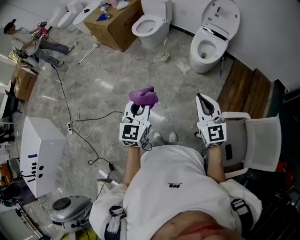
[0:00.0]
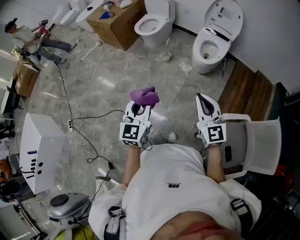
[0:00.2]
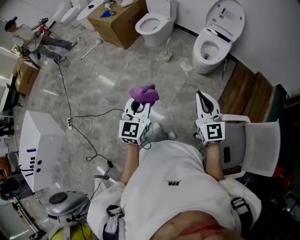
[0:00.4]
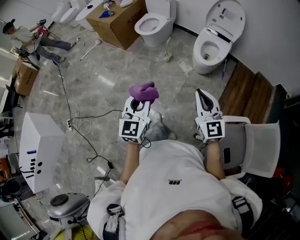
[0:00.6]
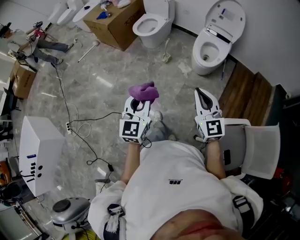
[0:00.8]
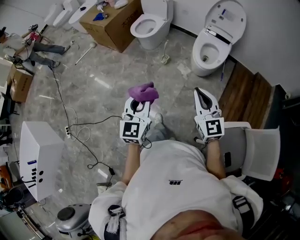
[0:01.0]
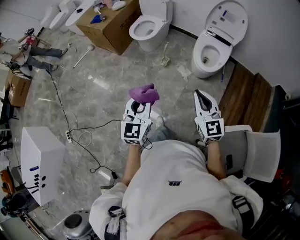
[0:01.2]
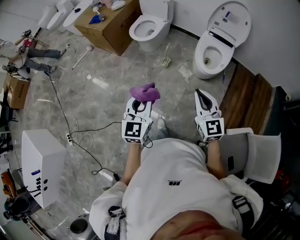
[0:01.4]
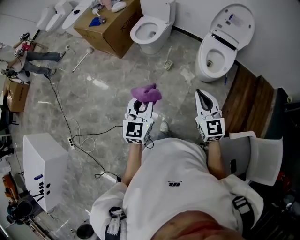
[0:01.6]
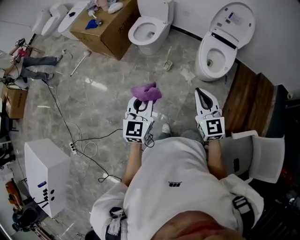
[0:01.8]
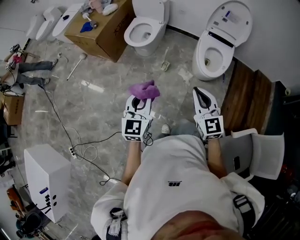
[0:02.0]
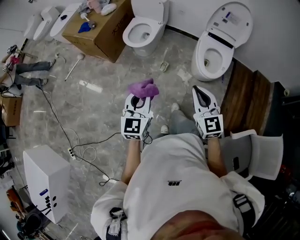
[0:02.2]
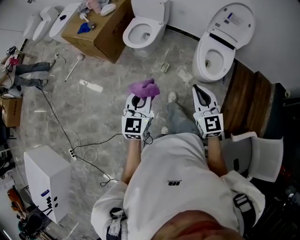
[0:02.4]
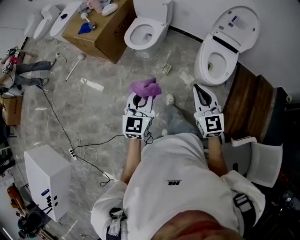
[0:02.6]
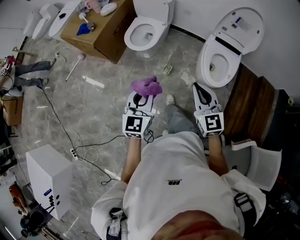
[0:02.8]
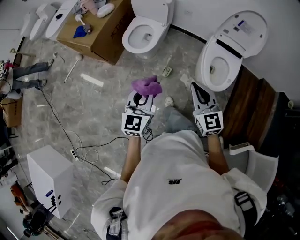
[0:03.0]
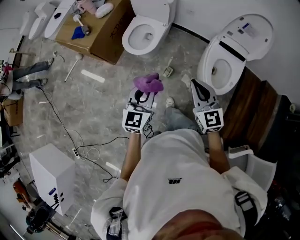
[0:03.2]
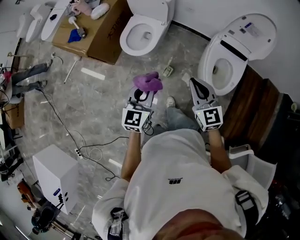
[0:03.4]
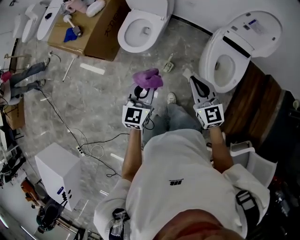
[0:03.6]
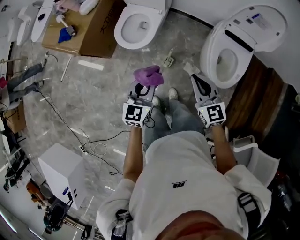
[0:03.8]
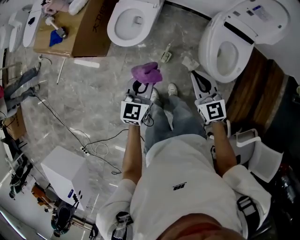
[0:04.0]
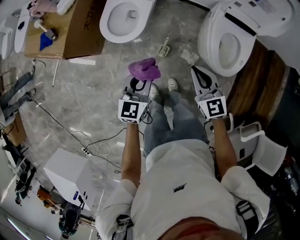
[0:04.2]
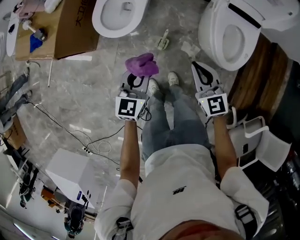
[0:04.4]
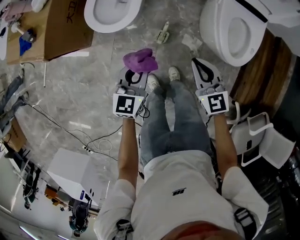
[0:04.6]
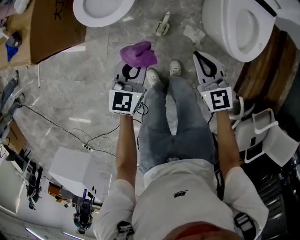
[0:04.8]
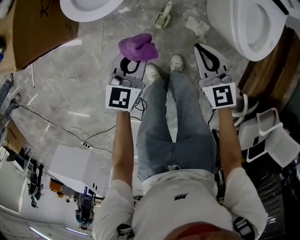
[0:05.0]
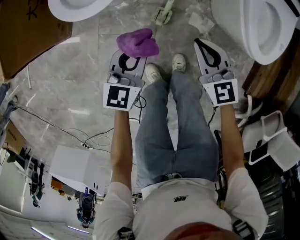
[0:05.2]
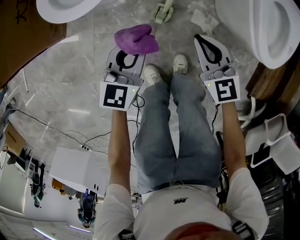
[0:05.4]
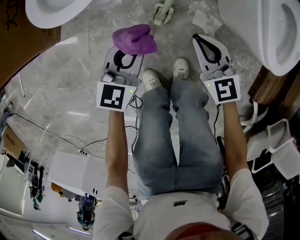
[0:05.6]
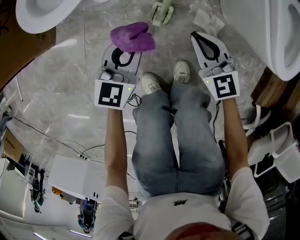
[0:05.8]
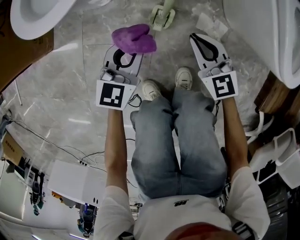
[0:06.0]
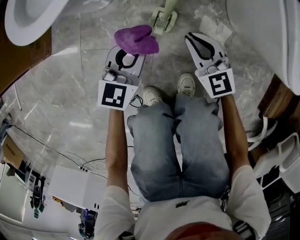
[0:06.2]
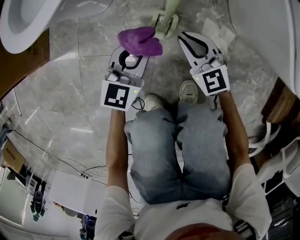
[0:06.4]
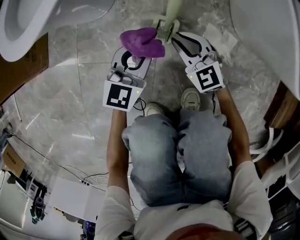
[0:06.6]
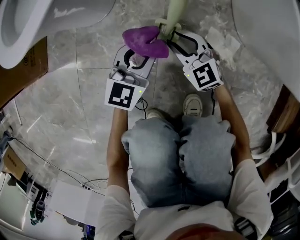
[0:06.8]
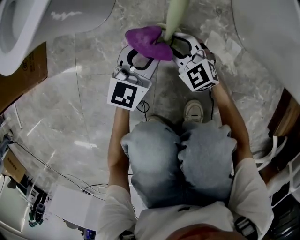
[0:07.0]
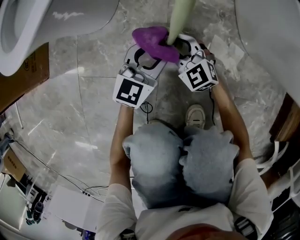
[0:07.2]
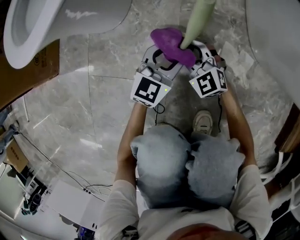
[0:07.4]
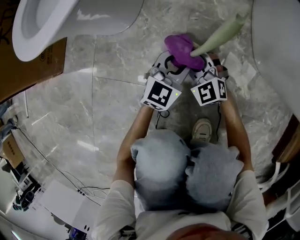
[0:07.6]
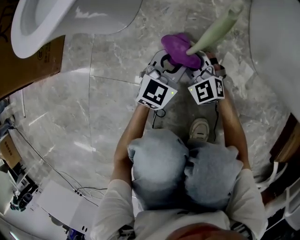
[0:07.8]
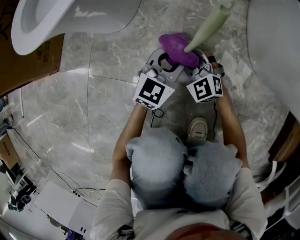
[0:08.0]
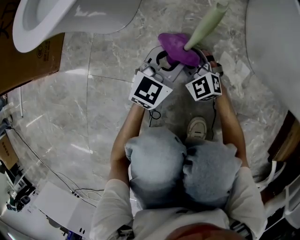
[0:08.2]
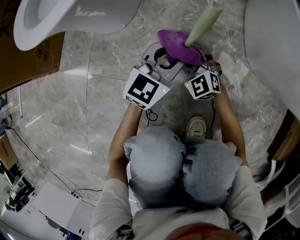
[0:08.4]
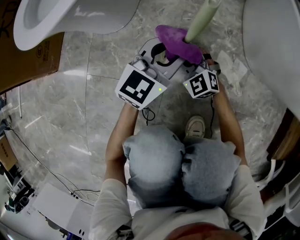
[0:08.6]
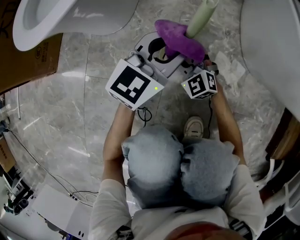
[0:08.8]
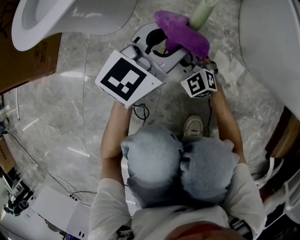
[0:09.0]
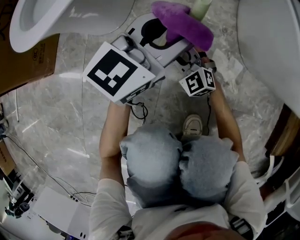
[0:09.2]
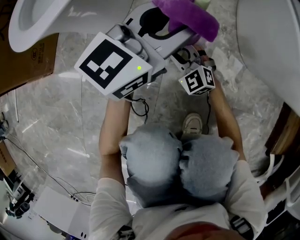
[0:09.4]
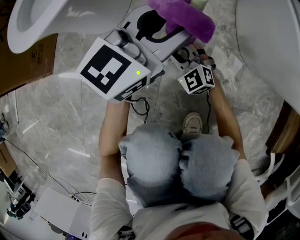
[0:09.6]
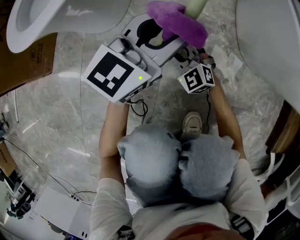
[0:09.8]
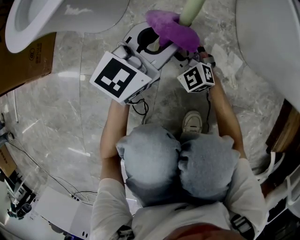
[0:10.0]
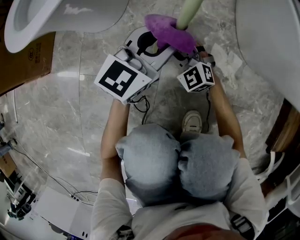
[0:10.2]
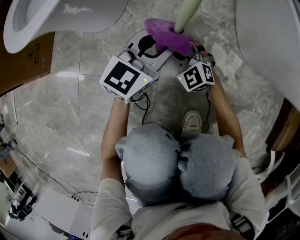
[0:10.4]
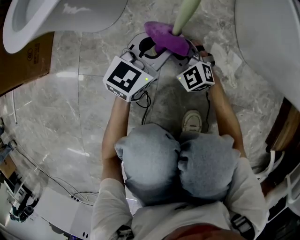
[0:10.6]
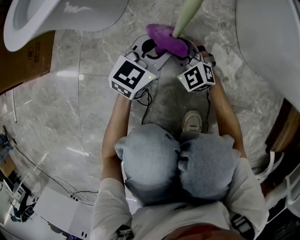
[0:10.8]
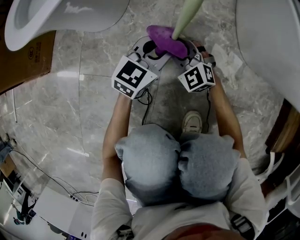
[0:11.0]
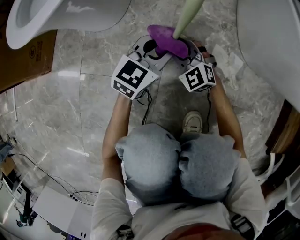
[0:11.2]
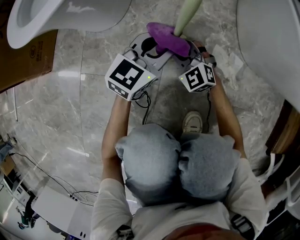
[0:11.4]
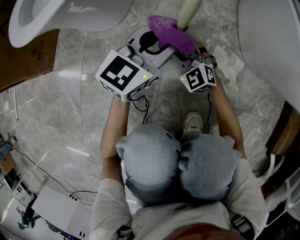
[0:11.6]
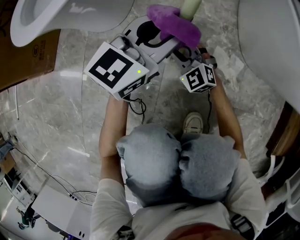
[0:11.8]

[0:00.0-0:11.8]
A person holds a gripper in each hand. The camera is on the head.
0:00.0 to 0:01.4: The grippers both shift forward by roughly 25 cm.
0:01.4 to 0:03.0: The grippers both shift forward by approximately 35 cm.
0:03.0 to 0:04.4: The grippers both shift downward and forward by some 30 cm.
0:04.4 to 0:06.0: The grippers both shift downward by about 50 cm.
0:06.0 to 0:07.4: The right gripper moves downward, roughly 20 cm, turns by some 20 degrees, and opens up, while the left gripper shifts roughly 20 cm downward and to the right, and opens.
0:07.4 to 0:08.8: The left gripper shifts some 15 cm upward.
0:08.8 to 0:10.4: The left gripper moves about 10 cm upward and comes back.
0:10.4 to 0:11.8: The left gripper travels upward by approximately 5 cm.

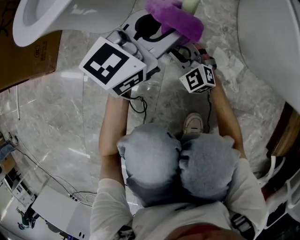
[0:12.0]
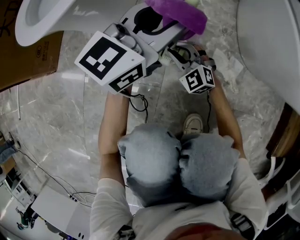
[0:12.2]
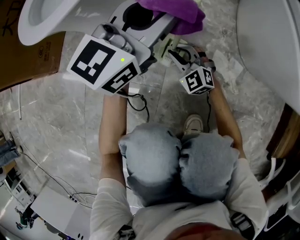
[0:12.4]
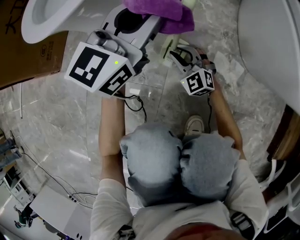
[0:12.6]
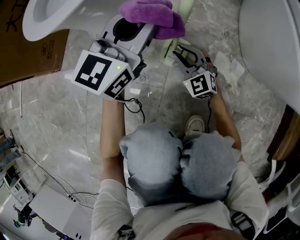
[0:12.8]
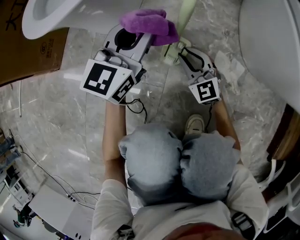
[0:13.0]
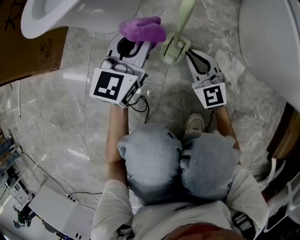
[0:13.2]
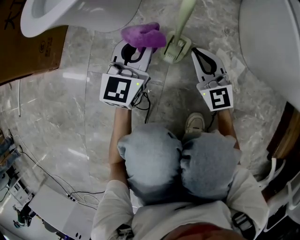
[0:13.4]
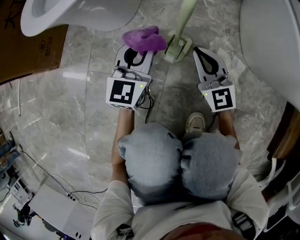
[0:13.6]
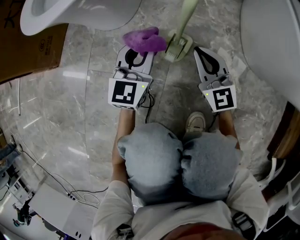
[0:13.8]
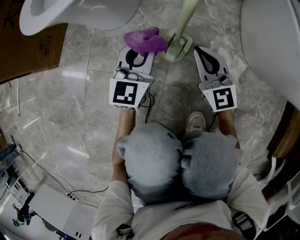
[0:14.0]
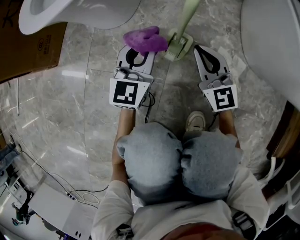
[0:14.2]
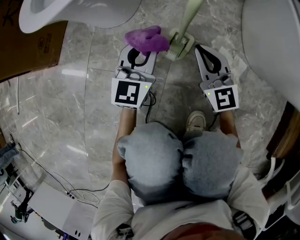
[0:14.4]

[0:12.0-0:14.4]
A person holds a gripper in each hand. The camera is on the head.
0:12.0 to 0:13.2: The right gripper heads upward, covering some 5 cm, and rotates some 30 degrees, while the left gripper shifts roughly 10 cm to the left, and turns by some 20 degrees.
0:13.2 to 0:14.4: The left gripper is displaced downward by approximately 5 cm.

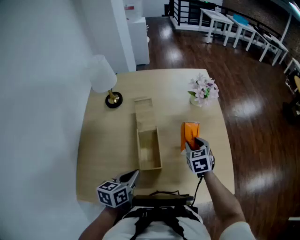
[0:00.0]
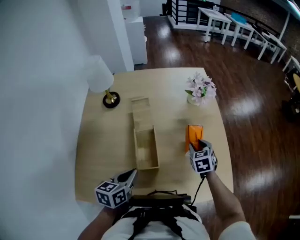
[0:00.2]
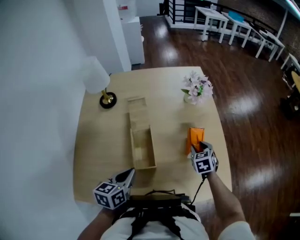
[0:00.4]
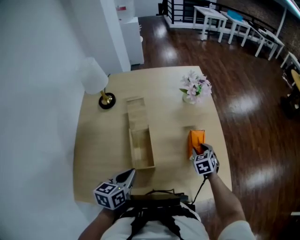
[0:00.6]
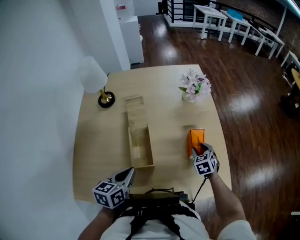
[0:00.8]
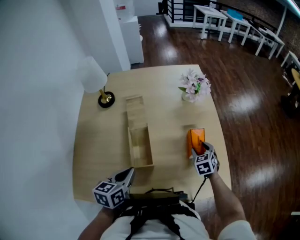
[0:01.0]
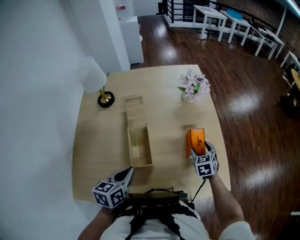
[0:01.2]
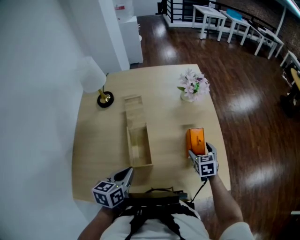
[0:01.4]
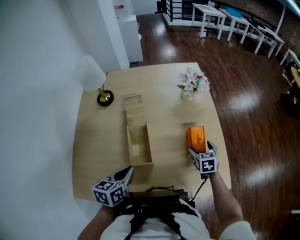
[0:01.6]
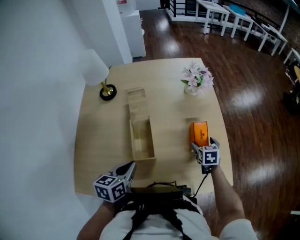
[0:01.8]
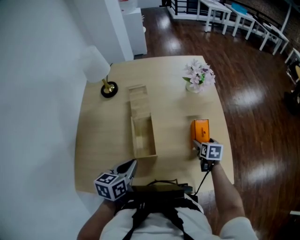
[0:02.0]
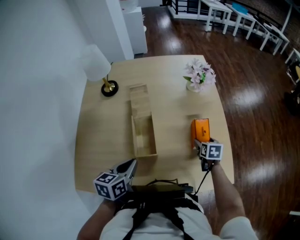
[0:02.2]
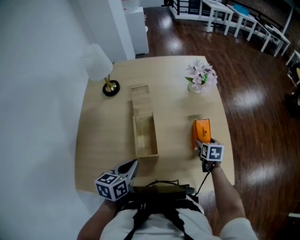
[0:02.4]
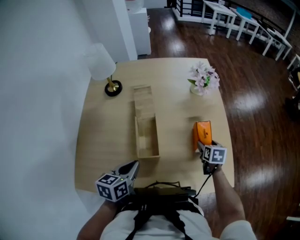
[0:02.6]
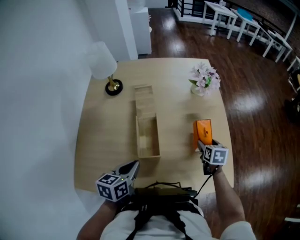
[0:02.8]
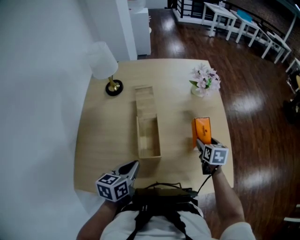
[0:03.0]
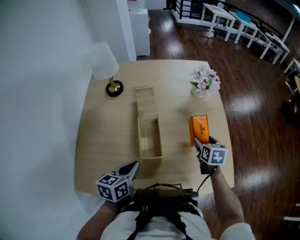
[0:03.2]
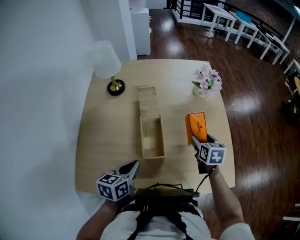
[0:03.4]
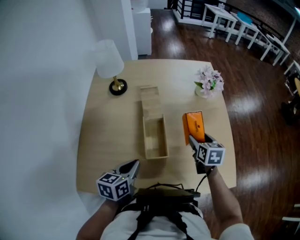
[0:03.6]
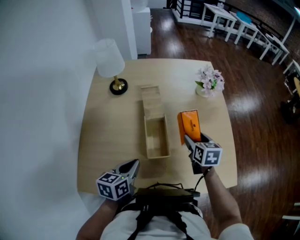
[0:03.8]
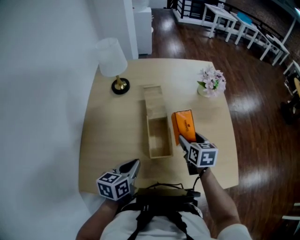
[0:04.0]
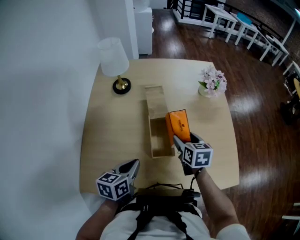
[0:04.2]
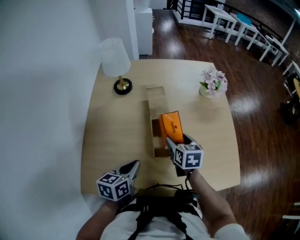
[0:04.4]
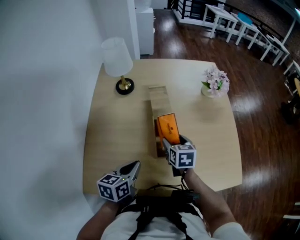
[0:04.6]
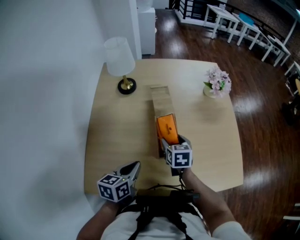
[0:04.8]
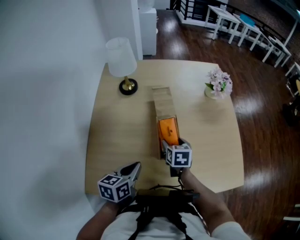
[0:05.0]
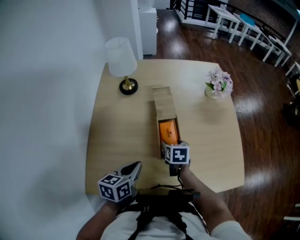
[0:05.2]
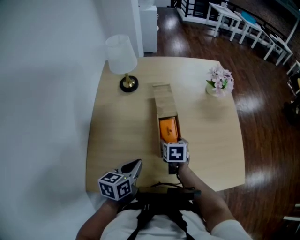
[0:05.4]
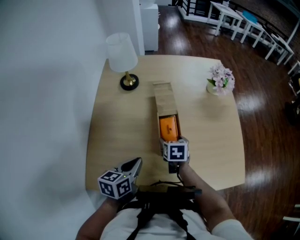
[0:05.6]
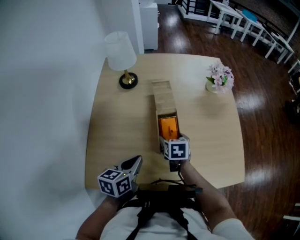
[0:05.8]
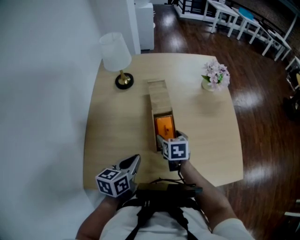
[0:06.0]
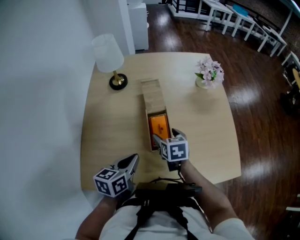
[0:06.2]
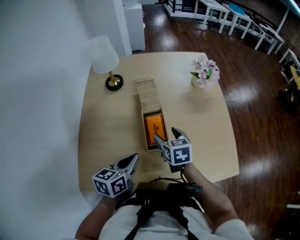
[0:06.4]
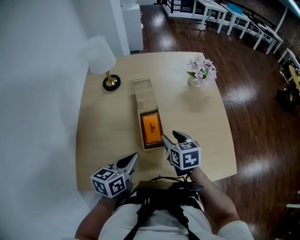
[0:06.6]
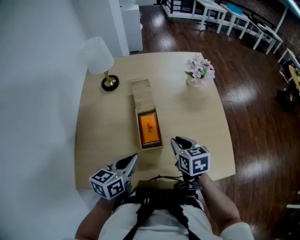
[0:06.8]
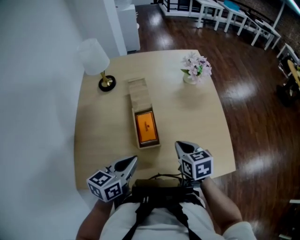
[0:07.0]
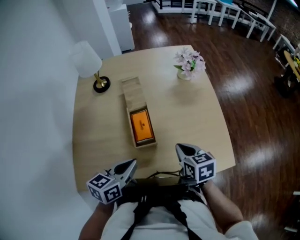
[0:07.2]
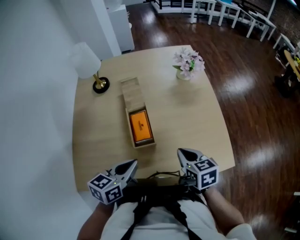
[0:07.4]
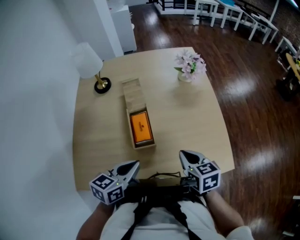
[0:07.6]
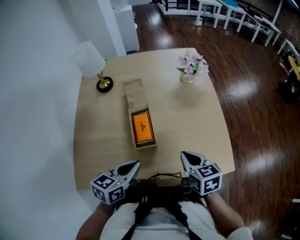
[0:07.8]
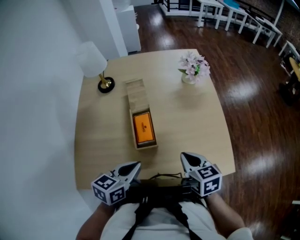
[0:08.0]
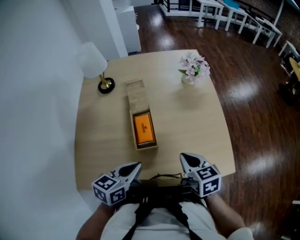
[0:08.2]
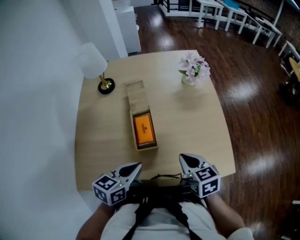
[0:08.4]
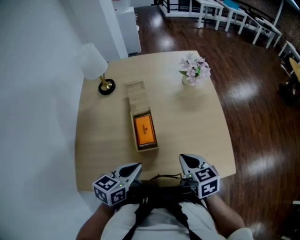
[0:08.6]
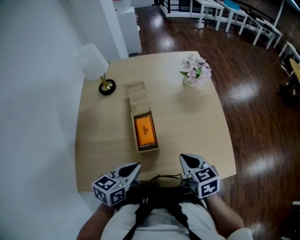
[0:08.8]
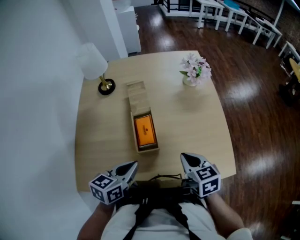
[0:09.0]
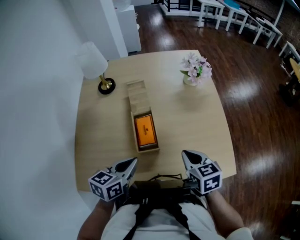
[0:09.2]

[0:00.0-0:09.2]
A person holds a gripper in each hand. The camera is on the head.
0:00.0 to 0:01.6: The right gripper moves to the right and downward, approximately 15 cm, and opens up.
0:01.6 to 0:03.0: There are only small adjustments of the grippers.
0:03.0 to 0:04.6: The right gripper moves to the left, some 25 cm, while the left gripper shifts about 10 cm to the left.
0:06.2 to 0:07.6: The left gripper goes roughly 10 cm to the right, while the right gripper is displaced to the right and backward by some 20 cm, and closes its fingers.
0:07.6 to 0:09.2: The grippers make only small movements.
